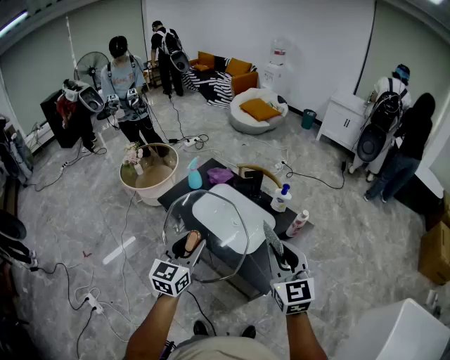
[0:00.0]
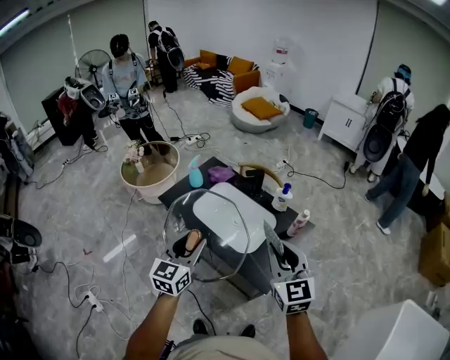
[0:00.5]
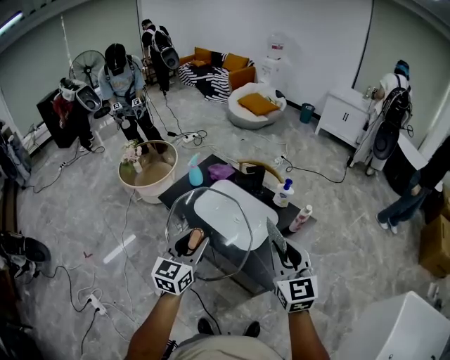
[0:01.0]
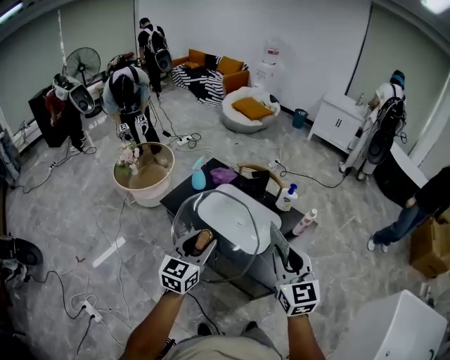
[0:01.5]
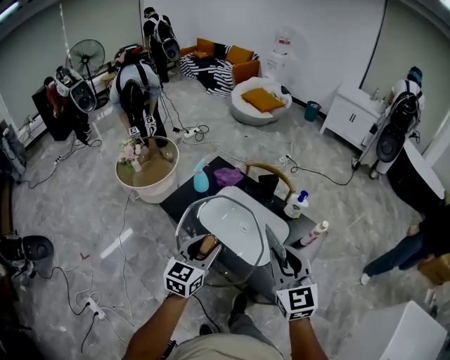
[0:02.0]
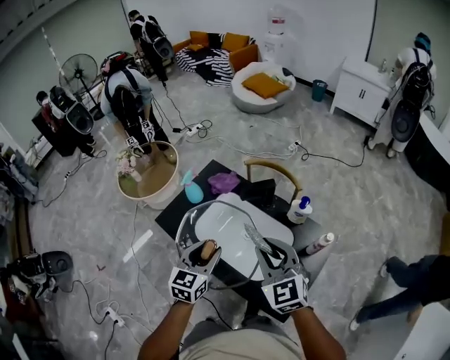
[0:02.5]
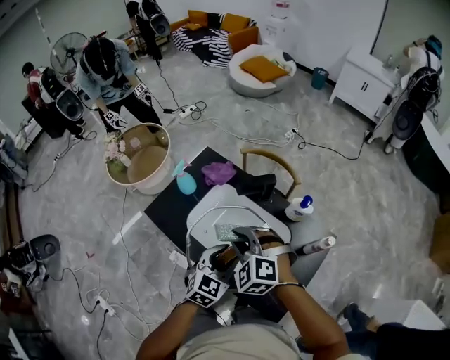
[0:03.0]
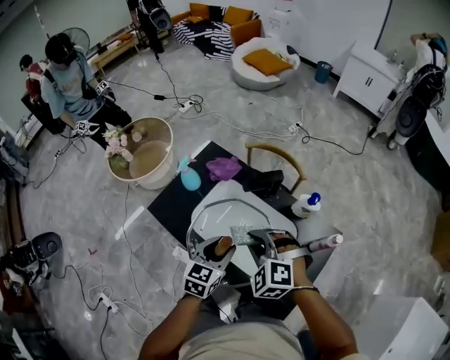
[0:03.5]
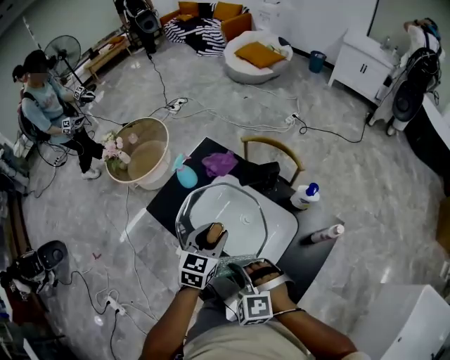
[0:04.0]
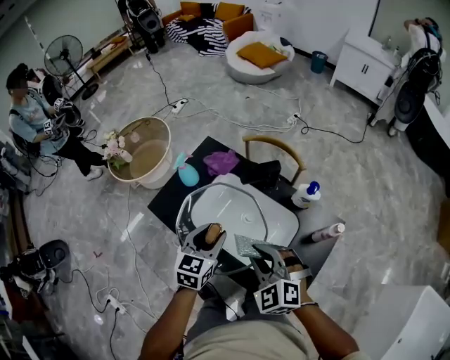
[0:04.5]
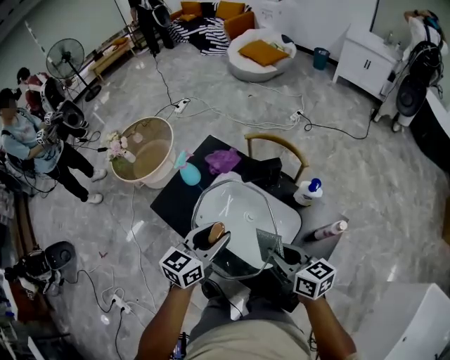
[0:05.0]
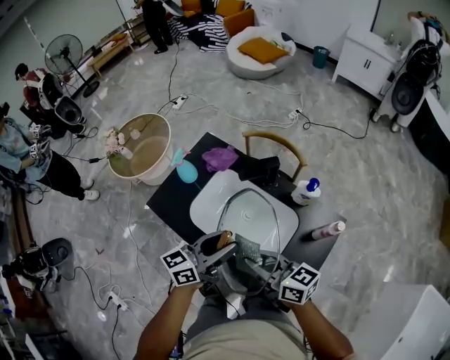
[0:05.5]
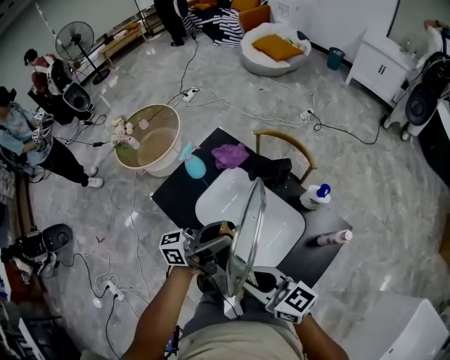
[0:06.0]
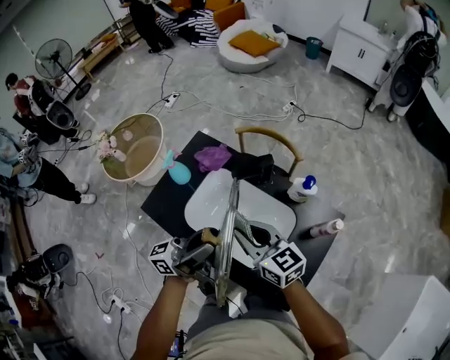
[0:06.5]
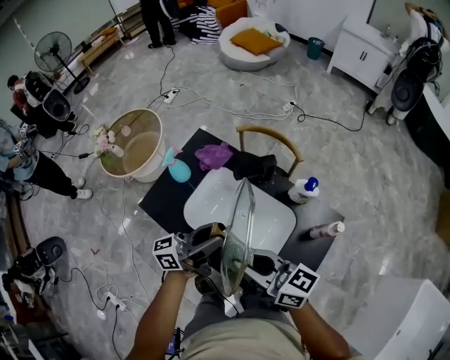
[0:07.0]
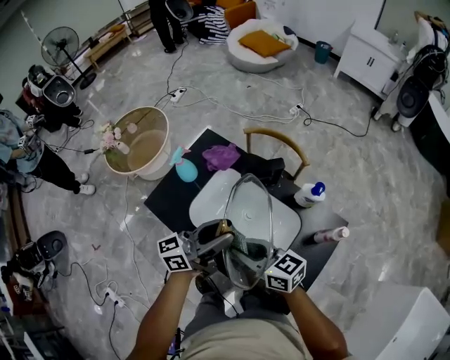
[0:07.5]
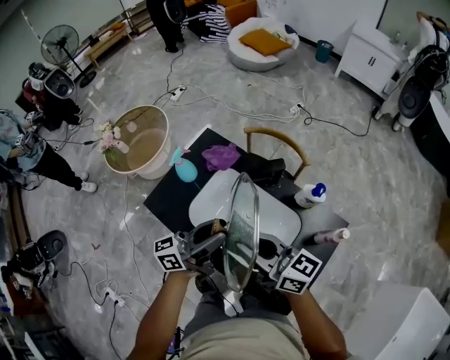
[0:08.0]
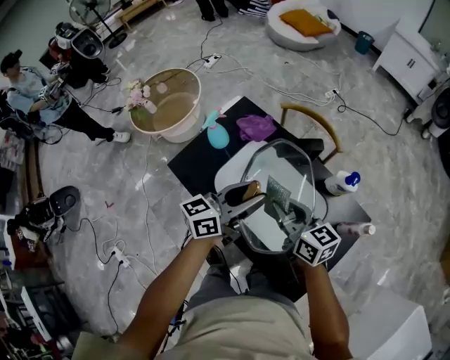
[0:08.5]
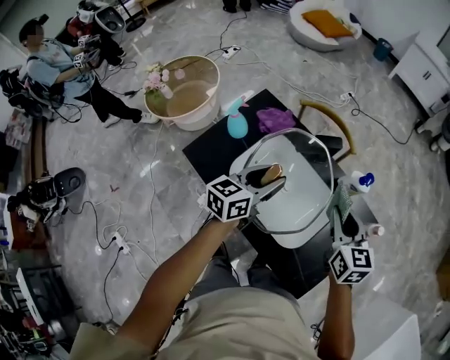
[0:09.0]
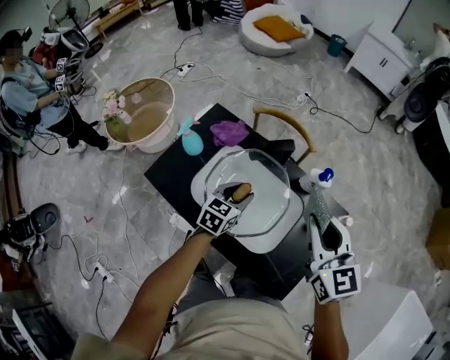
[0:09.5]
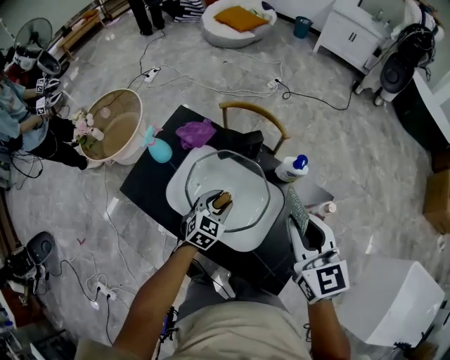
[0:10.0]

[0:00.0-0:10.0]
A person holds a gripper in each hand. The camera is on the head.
0:00.0 to 0:02.0: The right gripper goes about 10 cm to the left and forward. The left gripper is displaced forward and downward by about 10 cm.
0:02.0 to 0:04.0: The right gripper is displaced downward and to the left by some 20 cm, and points its fingers some 30 degrees further downward. Meanwhile the left gripper is displaced forward and downward by approximately 20 cm.
0:04.0 to 0:06.0: Both grippers travel together upward, approximately 5 cm. The right gripper travels to the right and back again, approximately 15 cm each way, and tilts its fingers approximately 40 degrees upward; the left gripper tips its fingers upward by about 50 degrees.
0:06.0 to 0:08.0: The right gripper moves forward and backward over some 15 cm, changing direction 2 times.
0:08.0 to 0:10.0: The right gripper shifts some 15 cm to the right, and rotates roughly 50 degrees. The left gripper goes about 20 cm downward, and tips its fingers downward by approximately 50 degrees.

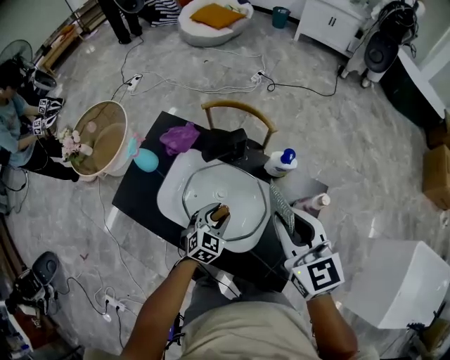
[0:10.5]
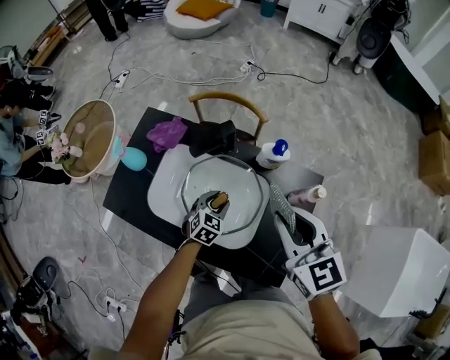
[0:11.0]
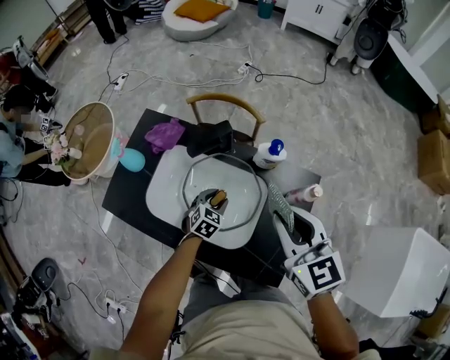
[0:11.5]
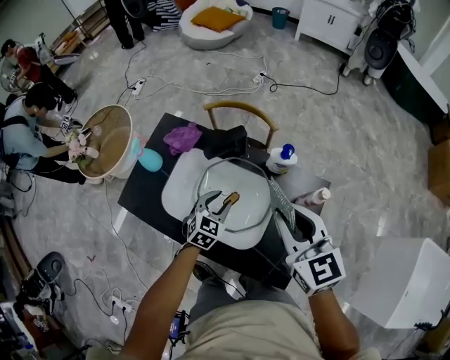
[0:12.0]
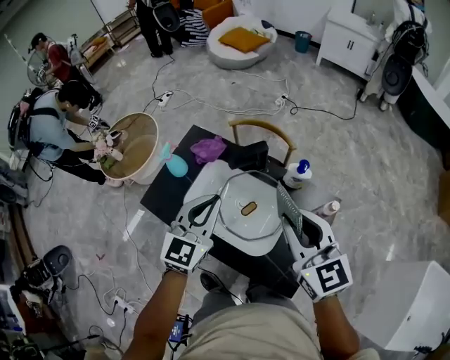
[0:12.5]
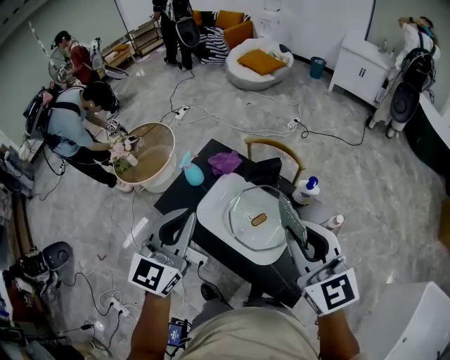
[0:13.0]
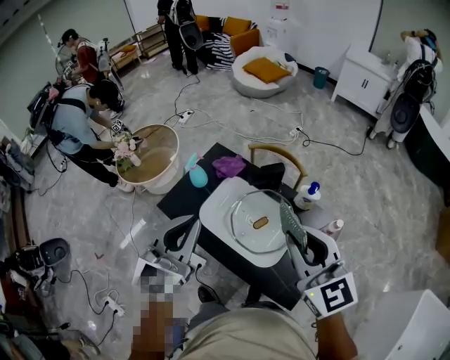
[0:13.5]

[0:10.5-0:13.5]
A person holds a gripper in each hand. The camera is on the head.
0:10.5 to 0:12.0: The left gripper moves about 5 cm downward and comes back.
0:12.0 to 0:13.5: The left gripper travels upward and to the left by about 40 cm, tips its fingers upward by roughly 40 degrees, and closes its fingers, while the right gripper travels upward, to the left and backward by about 15 cm.

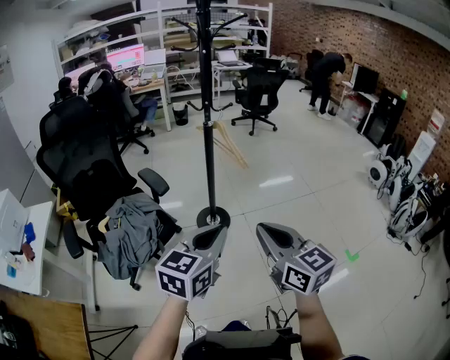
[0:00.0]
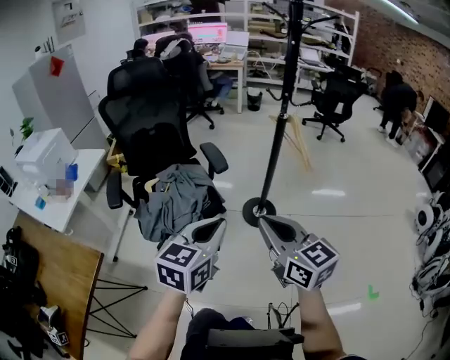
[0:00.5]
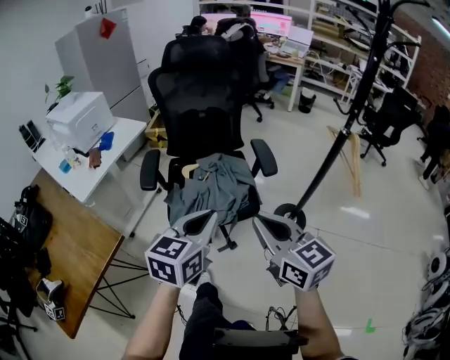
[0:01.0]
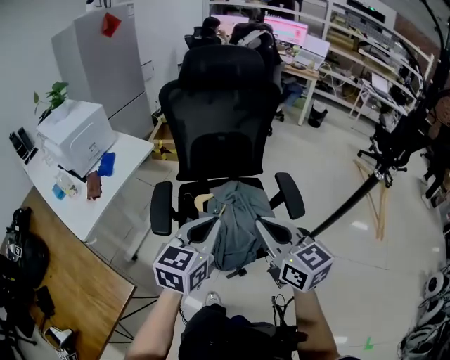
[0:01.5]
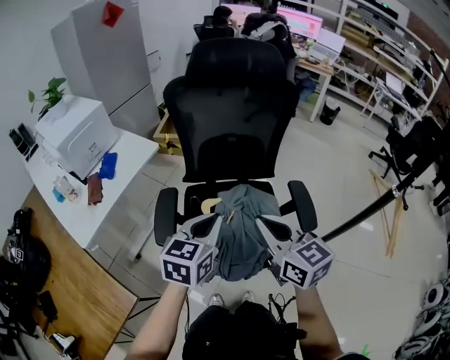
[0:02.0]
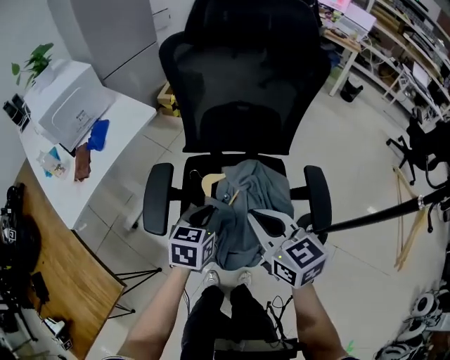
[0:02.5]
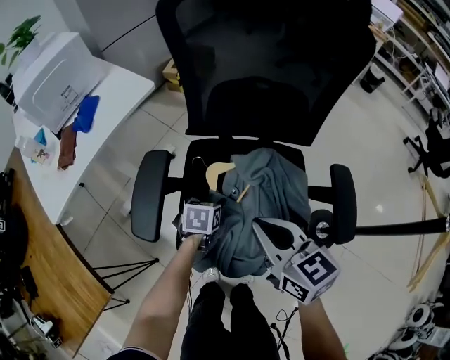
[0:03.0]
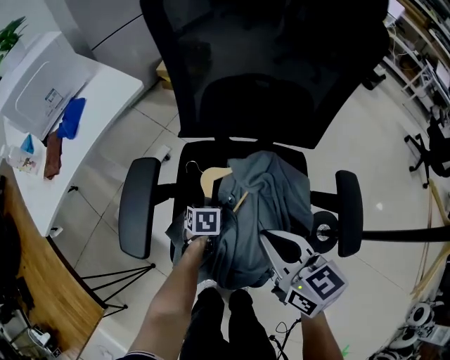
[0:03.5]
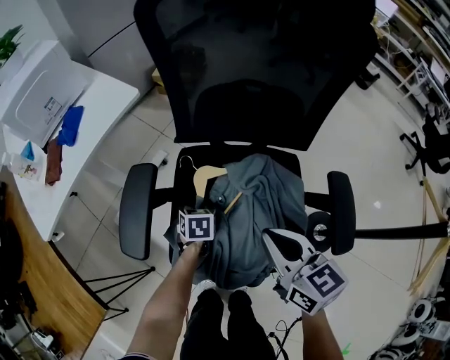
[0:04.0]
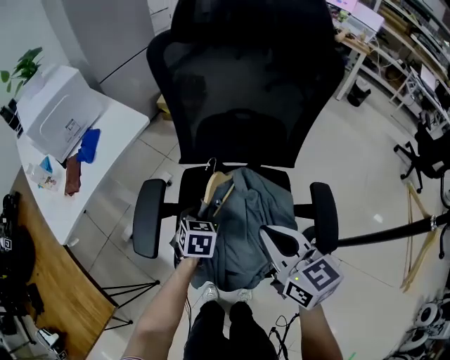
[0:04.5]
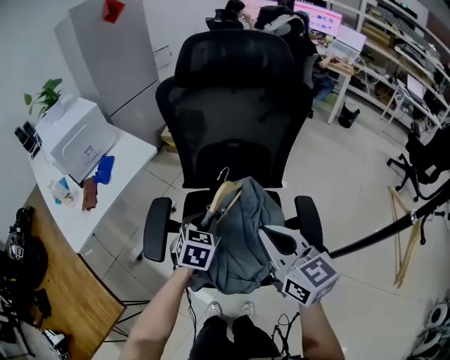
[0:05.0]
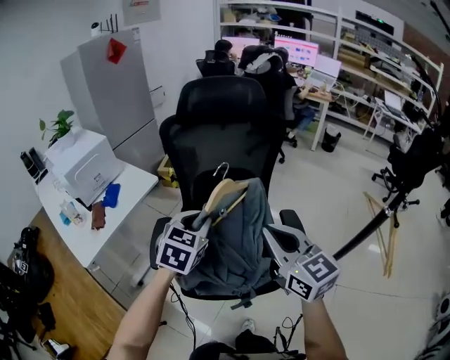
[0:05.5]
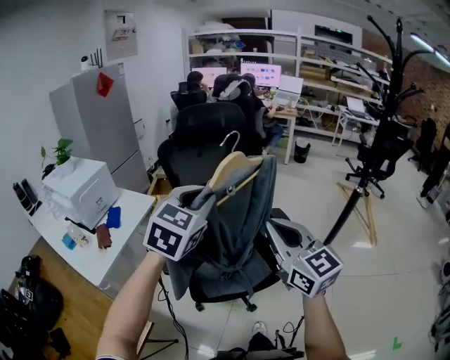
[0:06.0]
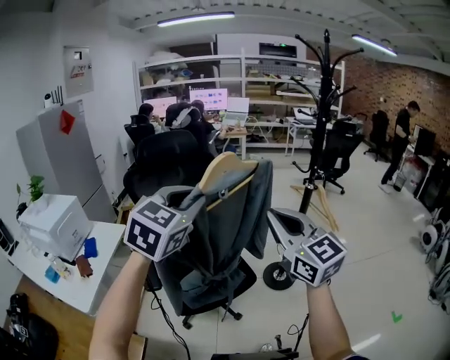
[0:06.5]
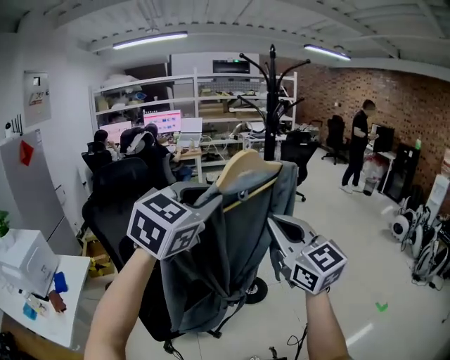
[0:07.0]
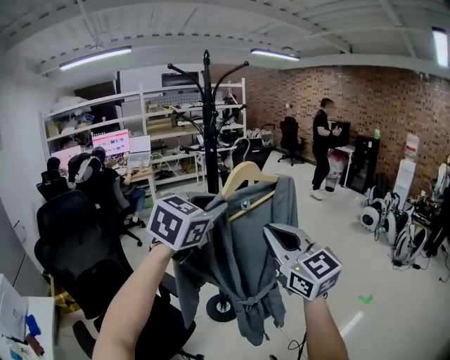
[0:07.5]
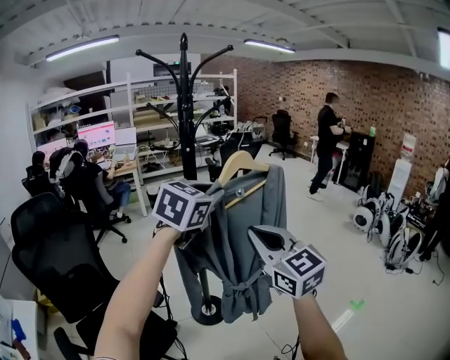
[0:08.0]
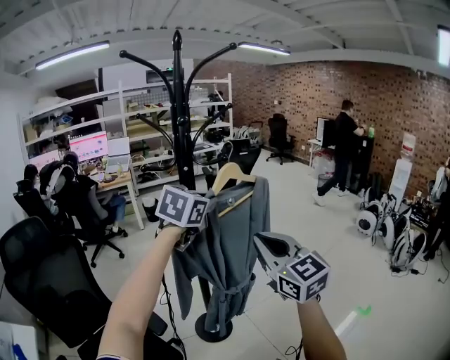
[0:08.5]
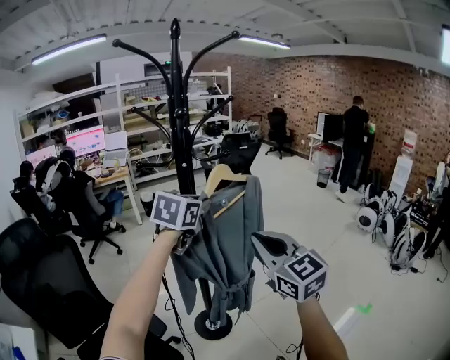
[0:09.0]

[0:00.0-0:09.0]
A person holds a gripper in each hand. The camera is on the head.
0:00.0 to 0:02.0: Both grippers are carried about 50 cm. The left gripper changes its angle by approximately 40 degrees; the right gripper changes its angle by roughly 40 degrees.
0:02.0 to 0:04.5: The left gripper travels downward and forward by some 30 cm, swivels roughly 30 degrees, and opens, then closes once more; the right gripper travels downward and forward by about 15 cm.
0:04.5 to 0:07.0: The left gripper is displaced upward by about 60 cm, and angles its fingers upward, by approximately 40 degrees; the right gripper changes place by roughly 50 cm, and rotates roughly 60 degrees.
0:07.0 to 0:09.0: The right gripper moves forward and to the right, approximately 35 cm; the left gripper is displaced forward by about 50 cm, and swivels roughly 20 degrees.

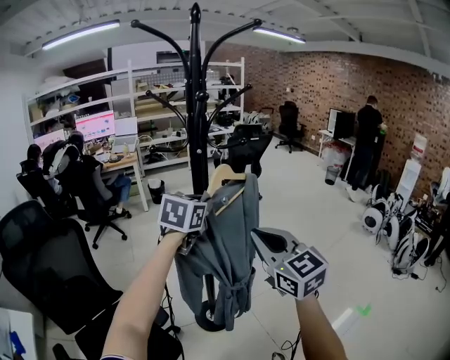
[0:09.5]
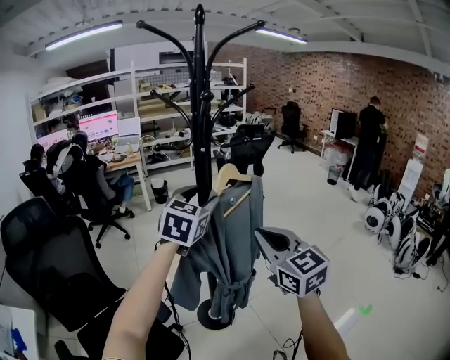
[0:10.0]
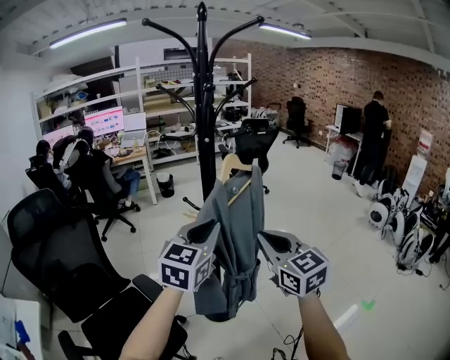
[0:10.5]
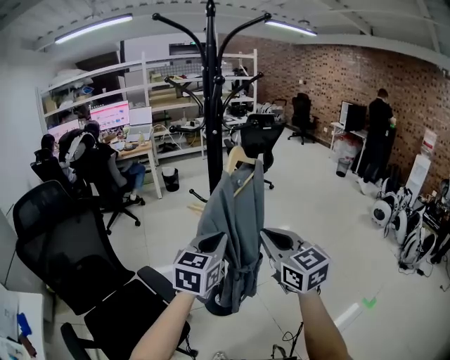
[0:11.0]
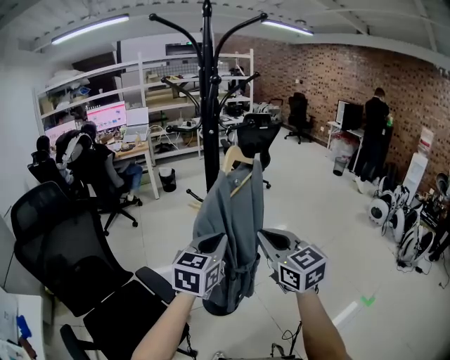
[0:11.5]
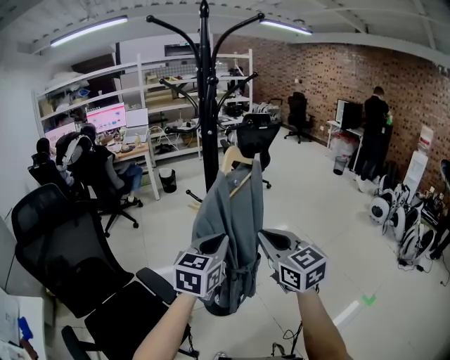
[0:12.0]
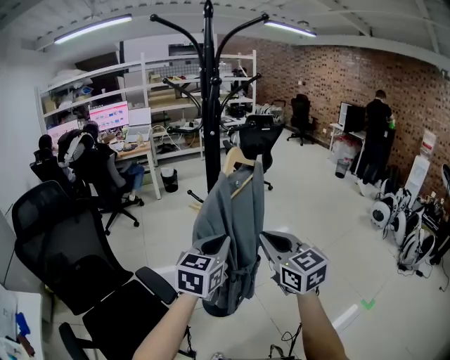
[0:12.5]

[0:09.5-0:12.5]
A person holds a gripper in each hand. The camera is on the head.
0:09.5 to 0:11.0: The right gripper heads downward, covering some 5 cm. The left gripper heads backward and downward, covering about 20 cm, and opens, then closes again.
0:11.0 to 0:12.5: The grippers move only a little.

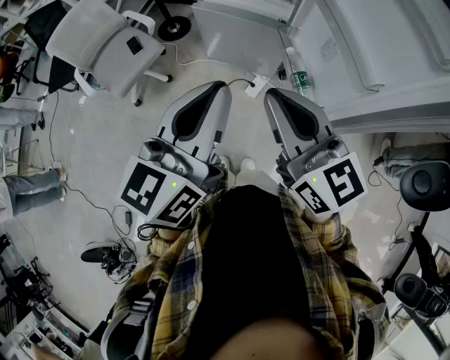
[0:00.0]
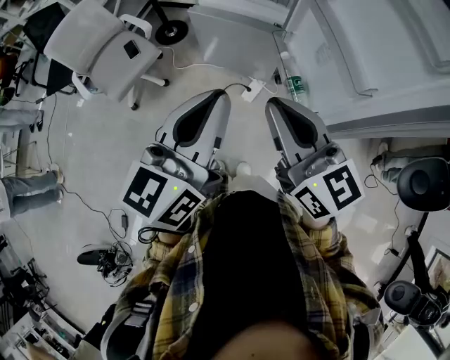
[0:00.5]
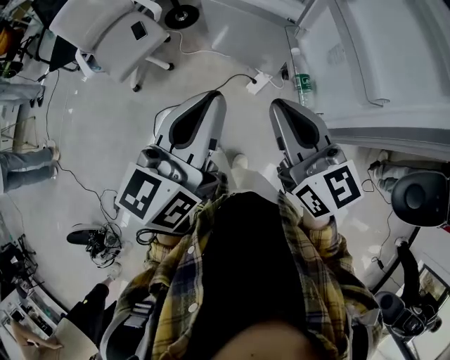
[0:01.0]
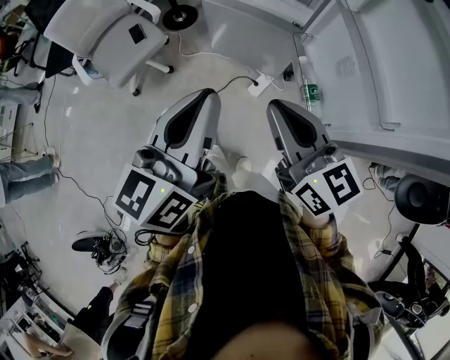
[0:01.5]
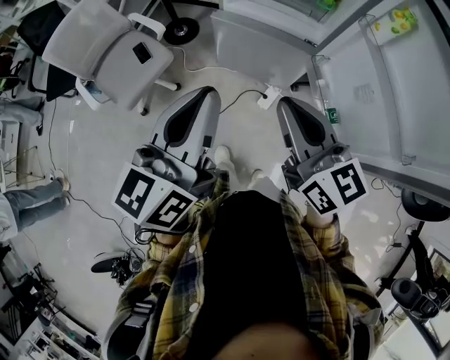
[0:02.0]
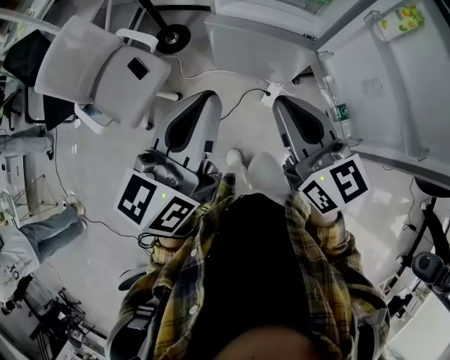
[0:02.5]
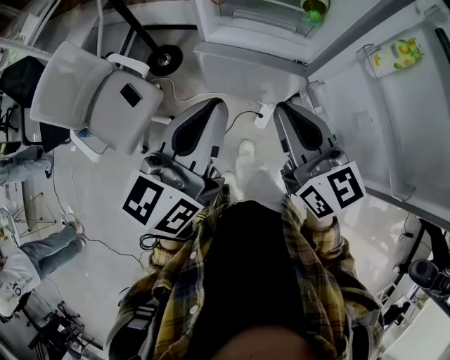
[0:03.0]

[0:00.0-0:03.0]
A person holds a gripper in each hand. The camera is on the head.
0:00.0 to 0:01.5: The left gripper shifts by some 5 cm. Meanwhile the right gripper moves downward and forward, roughly 10 cm.
0:01.5 to 0:03.0: Both grippers move forward, some 25 cm.
